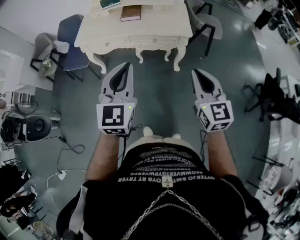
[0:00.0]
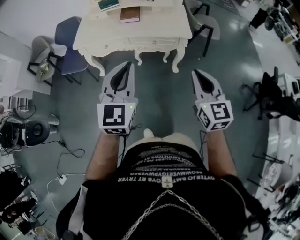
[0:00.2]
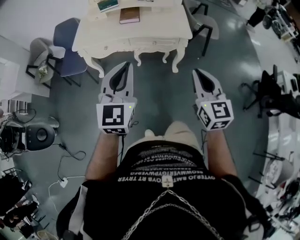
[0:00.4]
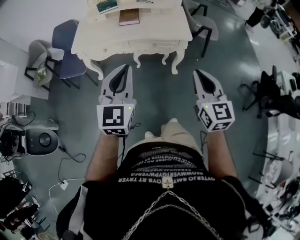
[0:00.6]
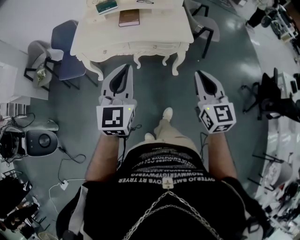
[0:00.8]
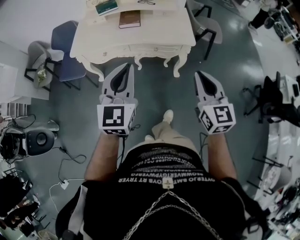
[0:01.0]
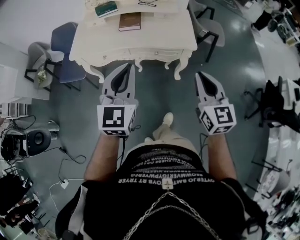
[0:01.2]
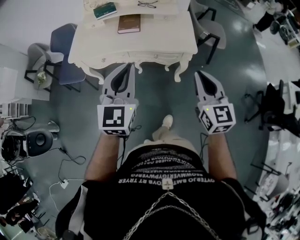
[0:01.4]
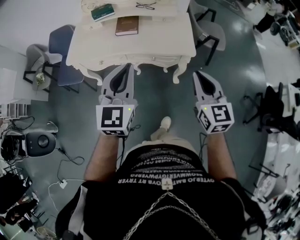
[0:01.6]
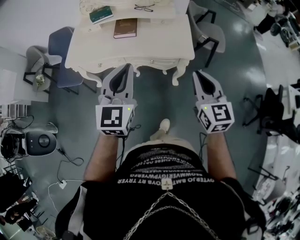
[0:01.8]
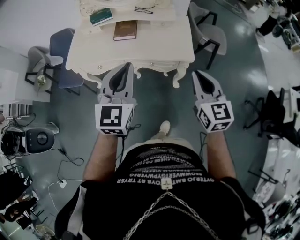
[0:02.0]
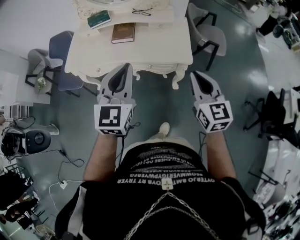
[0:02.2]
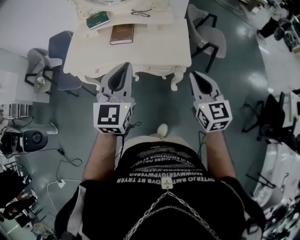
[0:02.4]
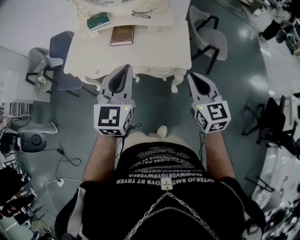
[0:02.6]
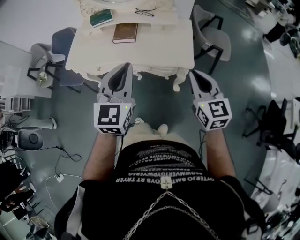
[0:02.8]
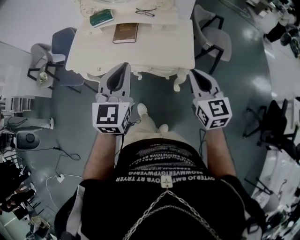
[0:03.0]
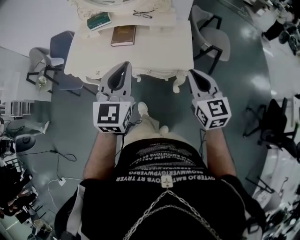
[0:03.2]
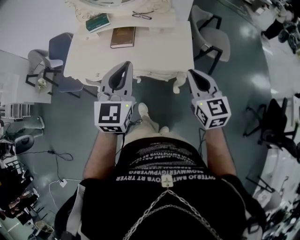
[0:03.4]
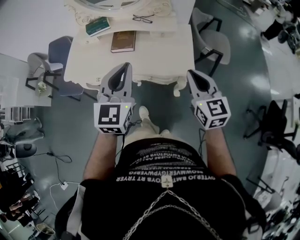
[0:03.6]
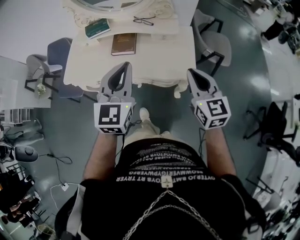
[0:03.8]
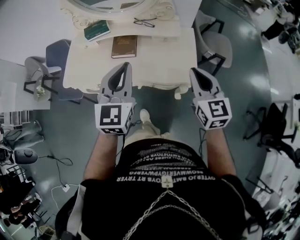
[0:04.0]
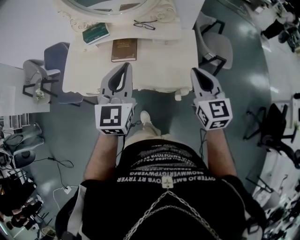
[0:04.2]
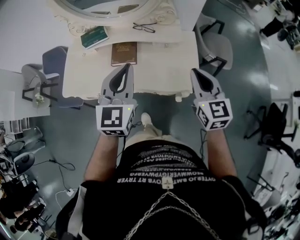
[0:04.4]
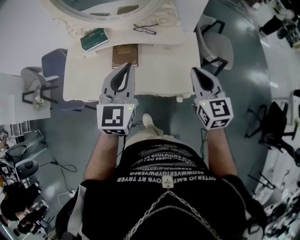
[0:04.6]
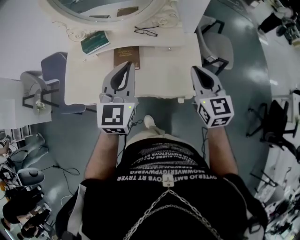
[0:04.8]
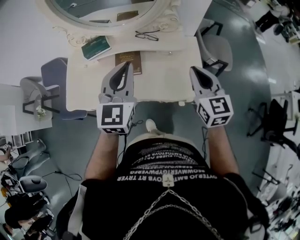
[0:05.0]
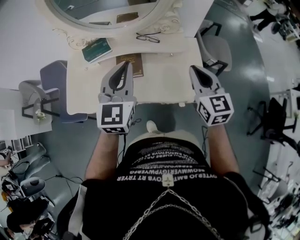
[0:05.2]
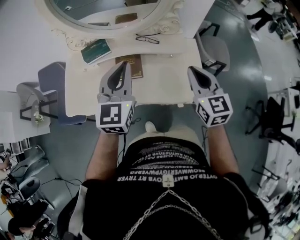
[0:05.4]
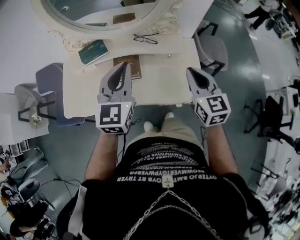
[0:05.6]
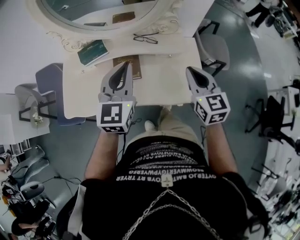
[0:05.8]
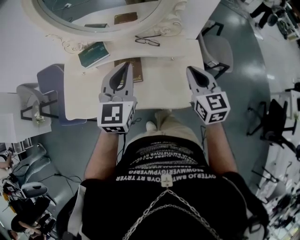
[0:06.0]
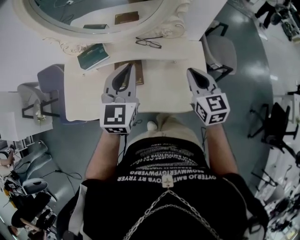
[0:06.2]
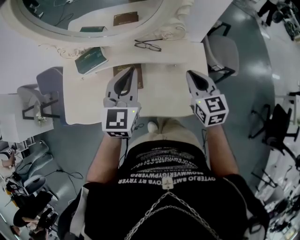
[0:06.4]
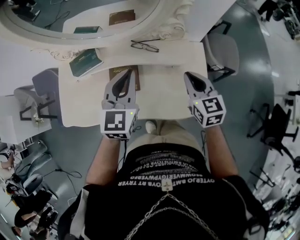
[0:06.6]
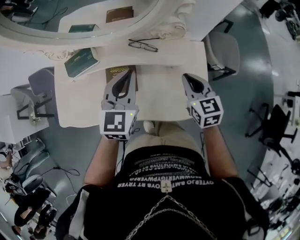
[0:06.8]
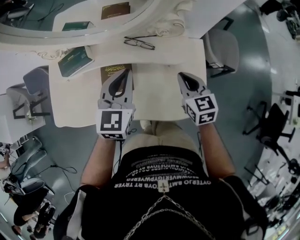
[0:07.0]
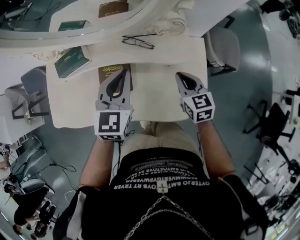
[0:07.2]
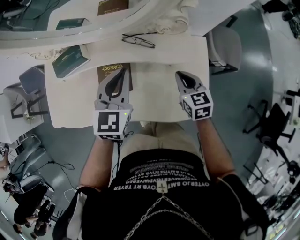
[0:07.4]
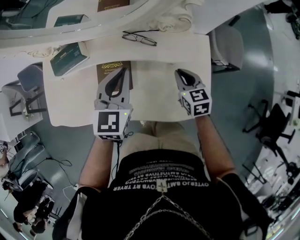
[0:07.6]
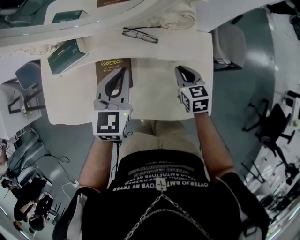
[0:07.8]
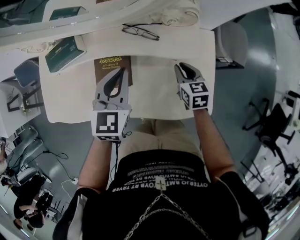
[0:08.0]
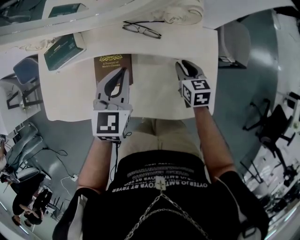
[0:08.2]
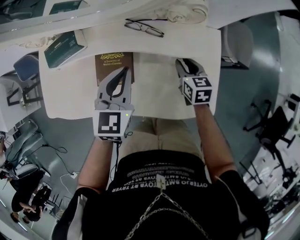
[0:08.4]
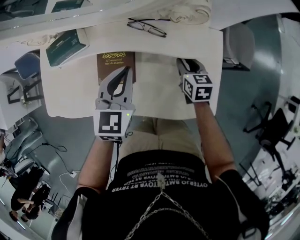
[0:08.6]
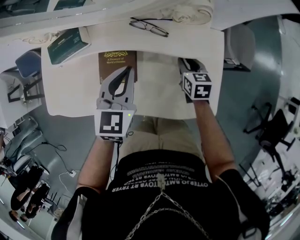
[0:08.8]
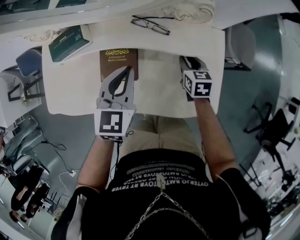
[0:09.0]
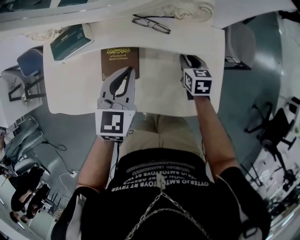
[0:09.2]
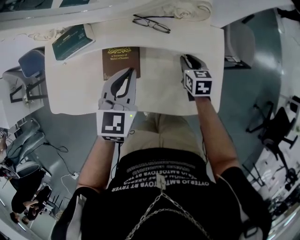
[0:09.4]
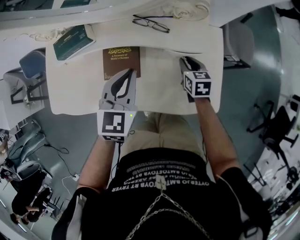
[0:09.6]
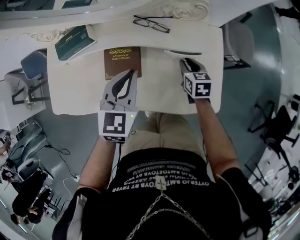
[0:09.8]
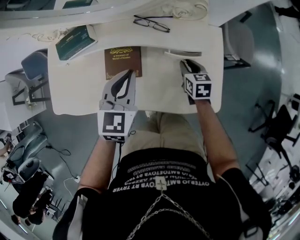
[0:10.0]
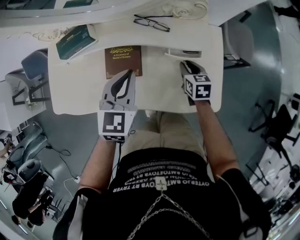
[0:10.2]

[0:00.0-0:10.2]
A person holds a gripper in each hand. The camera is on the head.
0:00.0 to 0:01.4: The two grippers go some 20 cm forward.
0:01.4 to 0:03.0: Both grippers travel together forward and to the right, some 15 cm.
0:03.0 to 0:04.4: The grippers both shift forward by approximately 20 cm.
0:04.4 to 0:05.8: Both grippers move forward and to the left, approximately 10 cm.
0:05.8 to 0:07.2: Both grippers move downward and forward, some 20 cm.
0:07.2 to 0:08.8: The left gripper heads downward, covering about 10 cm, while the right gripper is displaced downward and forward by roughly 15 cm, and opens up.
0:08.8 to 0:10.2: The right gripper heads backward, covering approximately 5 cm.

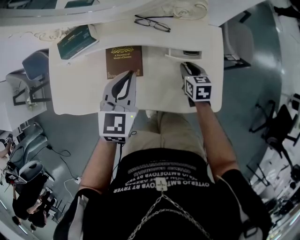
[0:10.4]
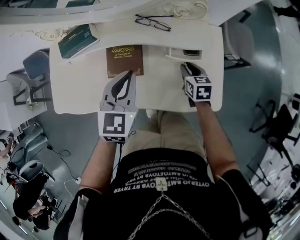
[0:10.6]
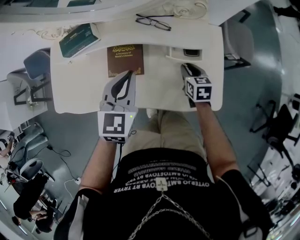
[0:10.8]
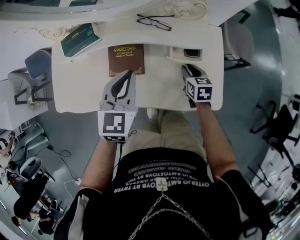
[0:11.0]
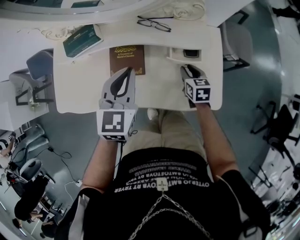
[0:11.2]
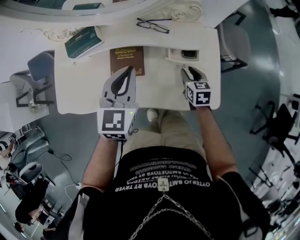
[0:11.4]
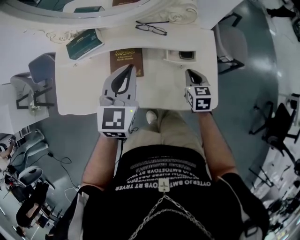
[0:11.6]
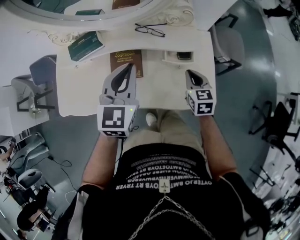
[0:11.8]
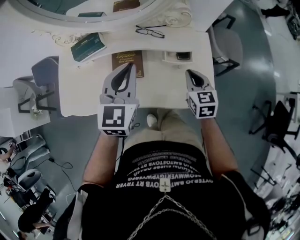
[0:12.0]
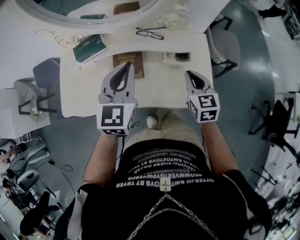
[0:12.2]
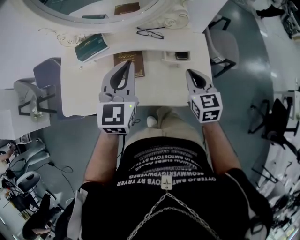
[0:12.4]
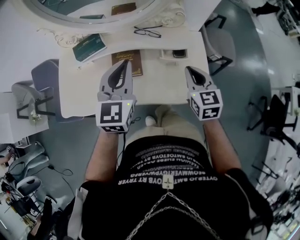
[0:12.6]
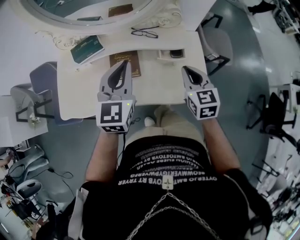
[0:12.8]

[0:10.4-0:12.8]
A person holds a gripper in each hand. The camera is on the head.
0:10.4 to 0:11.6: Both grippers move upward, some 5 cm.
0:11.6 to 0:12.8: The left gripper shifts roughly 5 cm upward; the right gripper travels upward by about 15 cm.

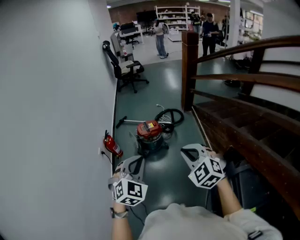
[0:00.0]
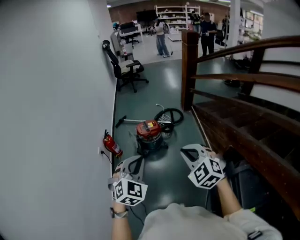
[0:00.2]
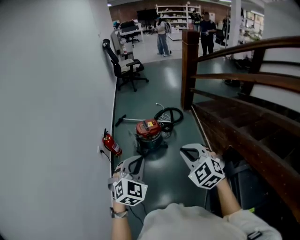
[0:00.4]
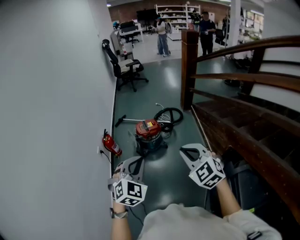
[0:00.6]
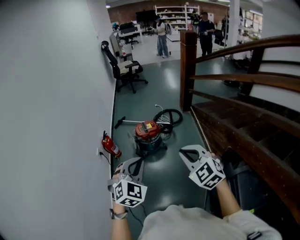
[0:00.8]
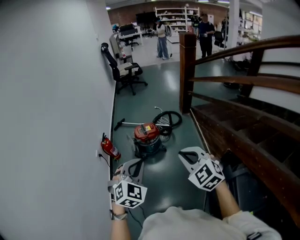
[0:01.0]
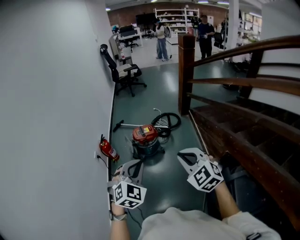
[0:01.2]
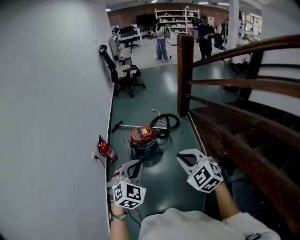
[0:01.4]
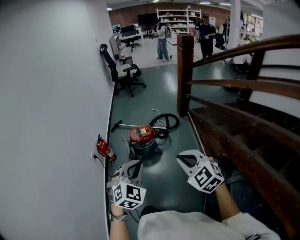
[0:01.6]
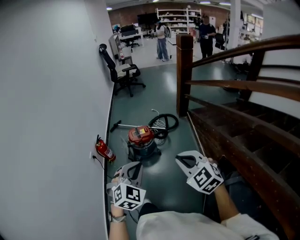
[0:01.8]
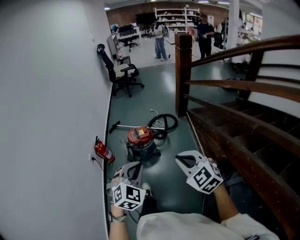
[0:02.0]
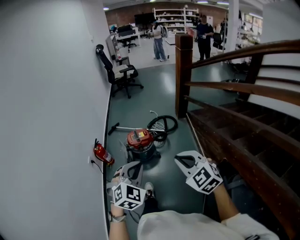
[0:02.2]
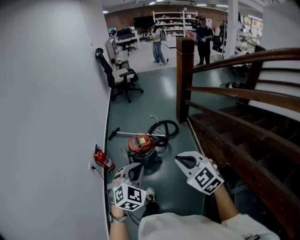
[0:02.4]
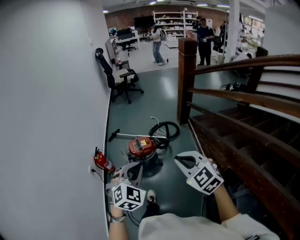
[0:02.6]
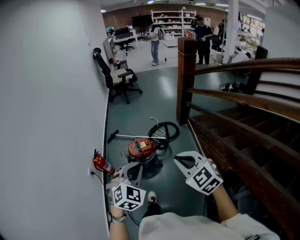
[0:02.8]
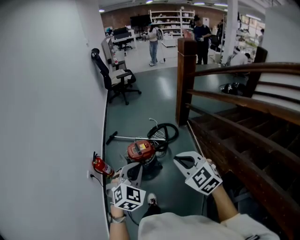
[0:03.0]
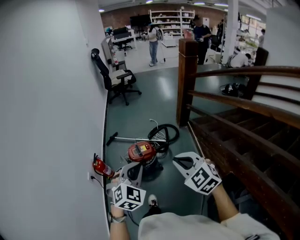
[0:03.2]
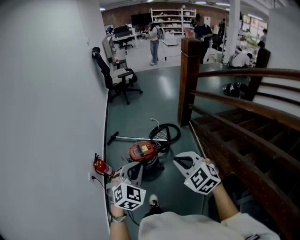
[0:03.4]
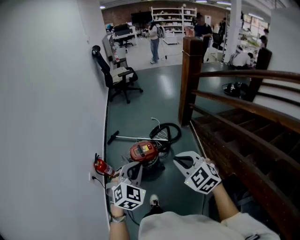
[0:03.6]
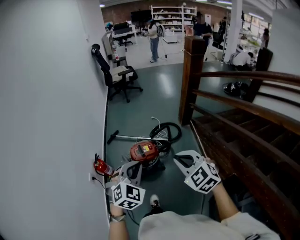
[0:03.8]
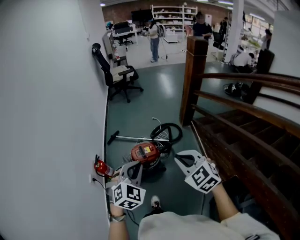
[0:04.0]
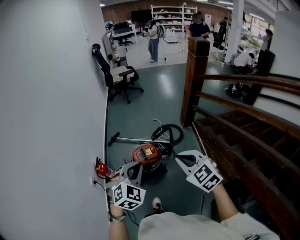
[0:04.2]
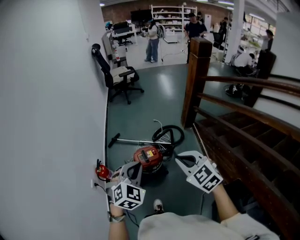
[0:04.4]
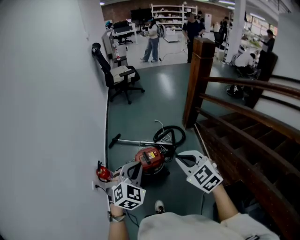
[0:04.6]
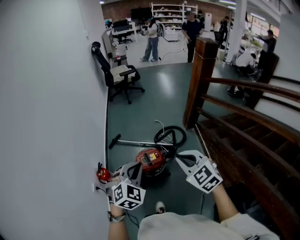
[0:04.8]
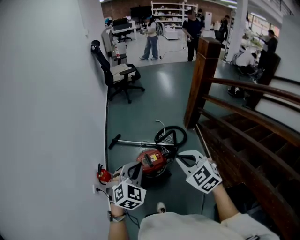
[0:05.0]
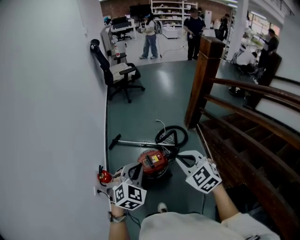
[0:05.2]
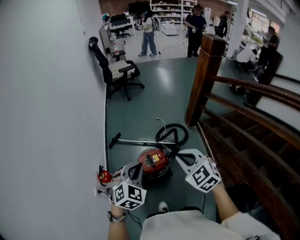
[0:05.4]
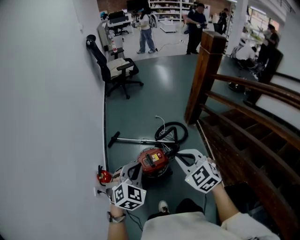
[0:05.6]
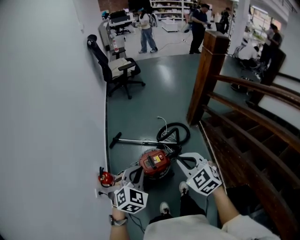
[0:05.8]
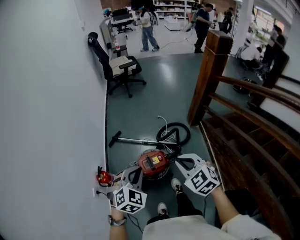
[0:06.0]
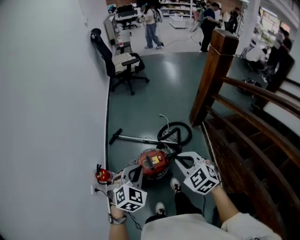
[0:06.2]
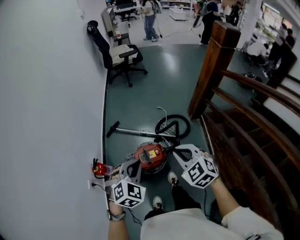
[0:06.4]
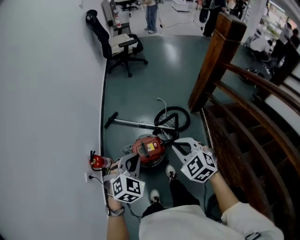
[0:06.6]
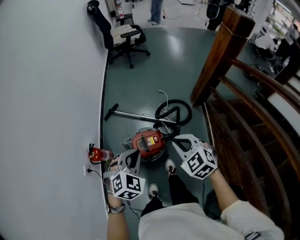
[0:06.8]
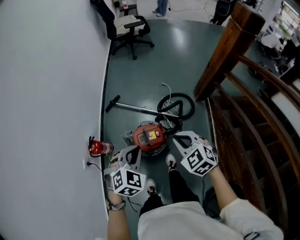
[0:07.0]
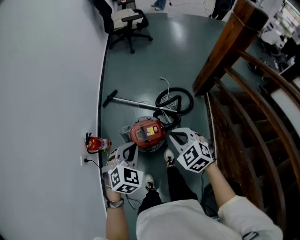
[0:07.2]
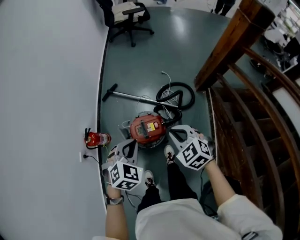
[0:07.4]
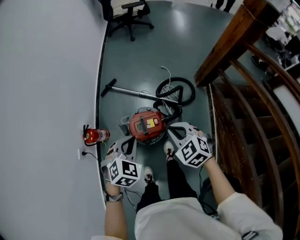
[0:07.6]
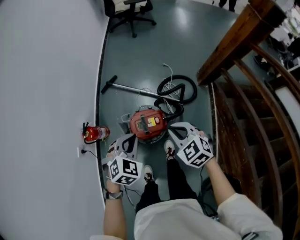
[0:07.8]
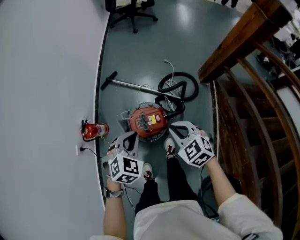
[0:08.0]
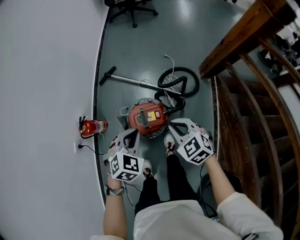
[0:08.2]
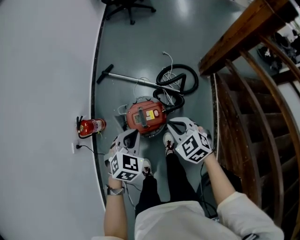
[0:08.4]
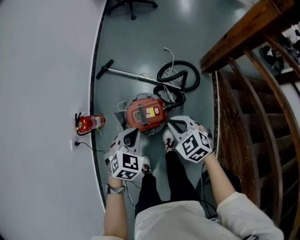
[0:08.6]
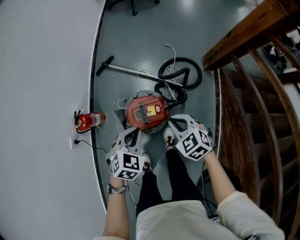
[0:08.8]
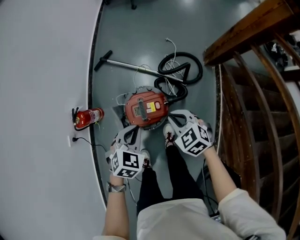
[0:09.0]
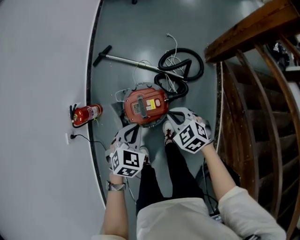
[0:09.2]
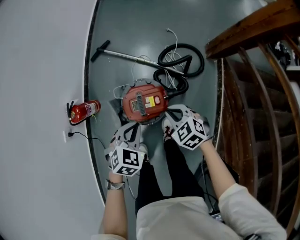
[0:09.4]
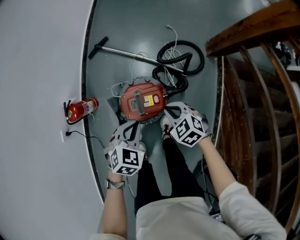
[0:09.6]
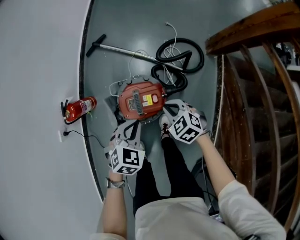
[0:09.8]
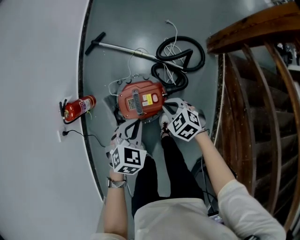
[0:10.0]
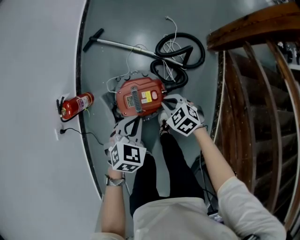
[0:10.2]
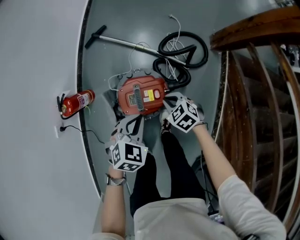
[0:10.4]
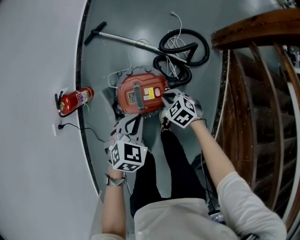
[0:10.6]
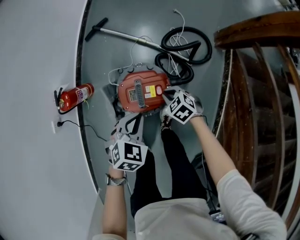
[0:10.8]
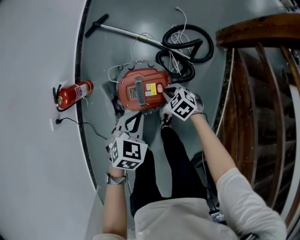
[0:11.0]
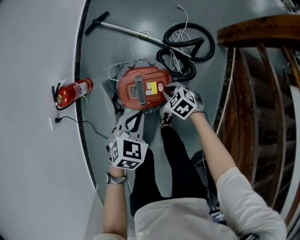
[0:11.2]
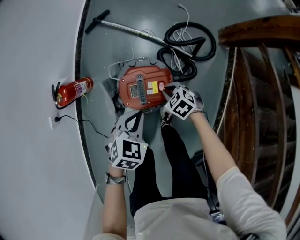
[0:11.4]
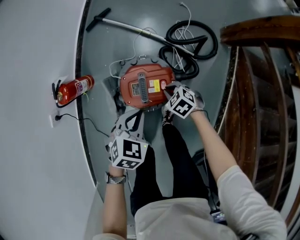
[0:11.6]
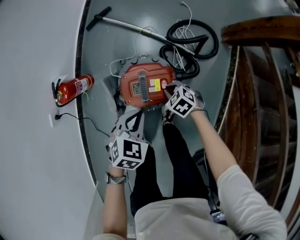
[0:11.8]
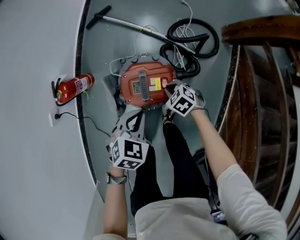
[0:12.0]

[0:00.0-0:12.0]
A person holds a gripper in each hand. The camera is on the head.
0:00.0 to 0:01.6: The two grippers go about 10 cm to the right.
0:01.6 to 0:03.0: Both grippers move forward, roughly 20 cm.
0:03.0 to 0:04.4: The left gripper heads forward and to the left, covering approximately 15 cm. Meanwhile the right gripper shifts about 15 cm forward.
0:04.4 to 0:06.0: The grippers both shift forward and downward by approximately 15 cm.
0:06.0 to 0:07.6: The two grippers go about 15 cm downward and forward.
0:07.6 to 0:09.0: Both grippers travel together downward, approximately 15 cm.
0:09.0 to 0:10.4: The right gripper heads downward, covering roughly 20 cm, while the left gripper moves downward, some 10 cm.
0:10.4 to 0:12.0: The left gripper goes some 5 cm downward; the right gripper shifts roughly 10 cm downward.
